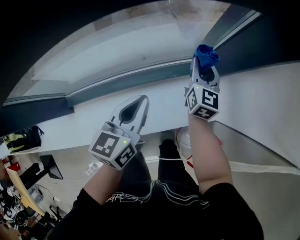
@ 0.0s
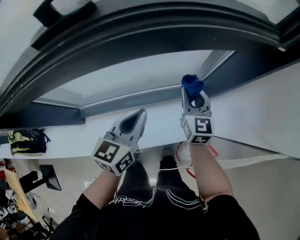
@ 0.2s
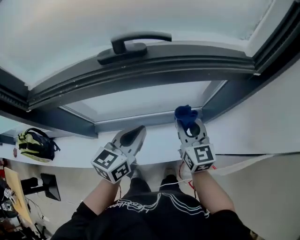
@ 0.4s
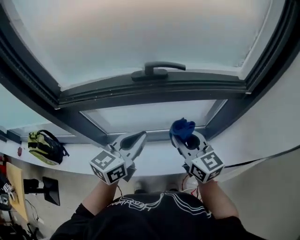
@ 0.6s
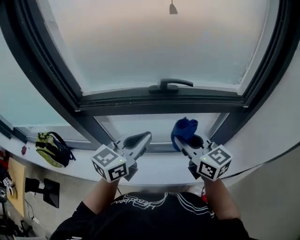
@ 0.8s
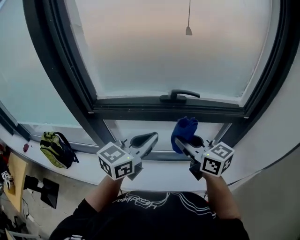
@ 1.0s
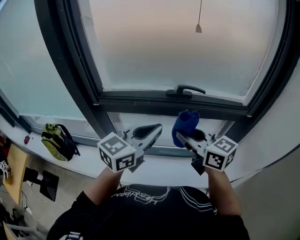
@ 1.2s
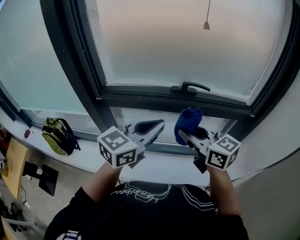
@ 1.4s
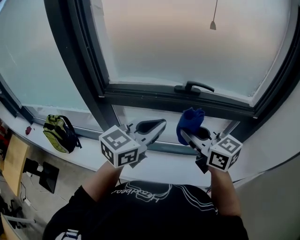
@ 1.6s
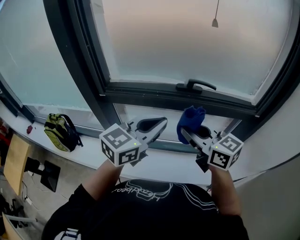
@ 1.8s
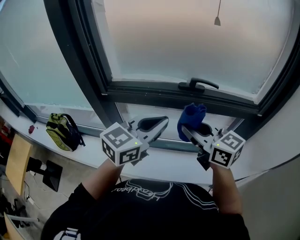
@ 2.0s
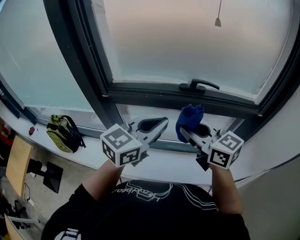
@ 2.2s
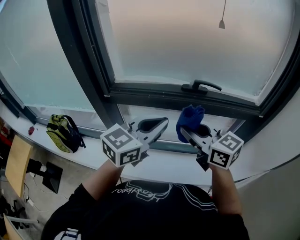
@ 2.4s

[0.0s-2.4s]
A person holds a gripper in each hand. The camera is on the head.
0.0s to 1.2s: Both grippers travel together upward, about 40 cm. The left gripper swivels about 30 degrees. Meanwhile the right gripper changes its angle by approximately 60 degrees.
1.2s to 2.4s: The grippers move only a little.

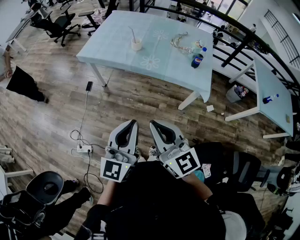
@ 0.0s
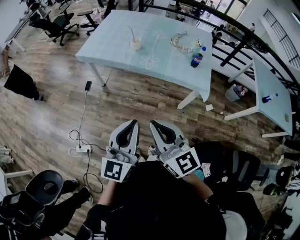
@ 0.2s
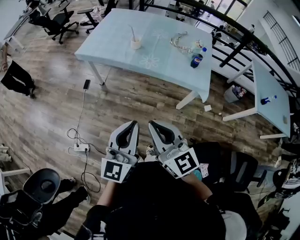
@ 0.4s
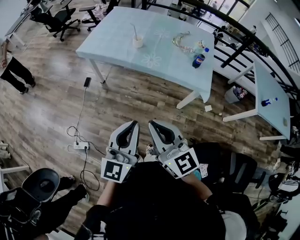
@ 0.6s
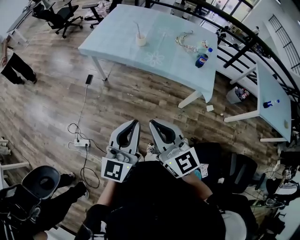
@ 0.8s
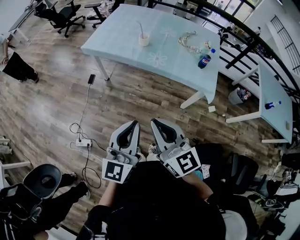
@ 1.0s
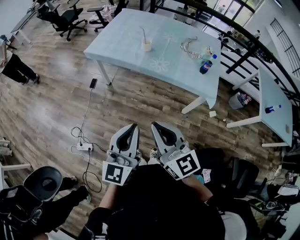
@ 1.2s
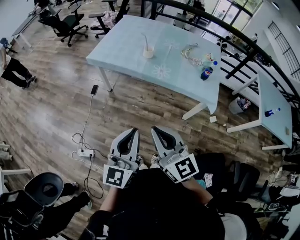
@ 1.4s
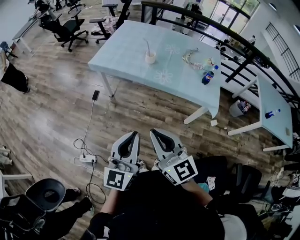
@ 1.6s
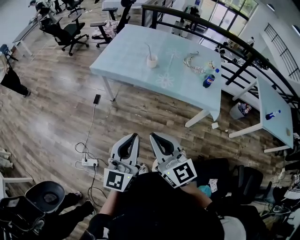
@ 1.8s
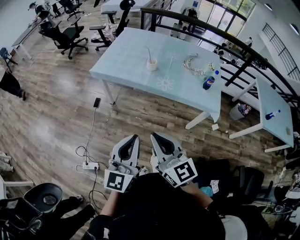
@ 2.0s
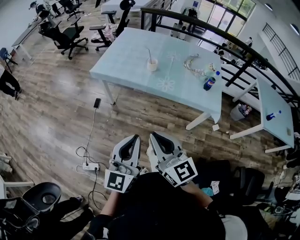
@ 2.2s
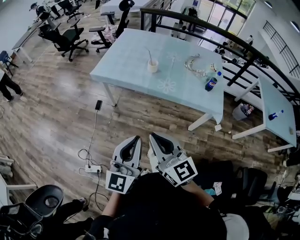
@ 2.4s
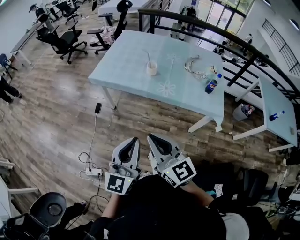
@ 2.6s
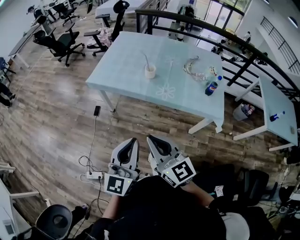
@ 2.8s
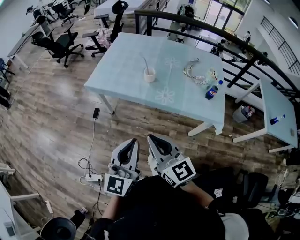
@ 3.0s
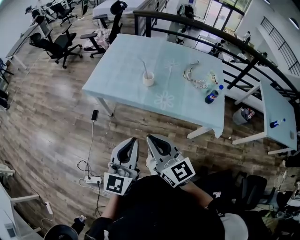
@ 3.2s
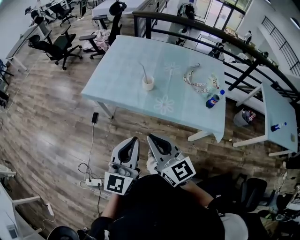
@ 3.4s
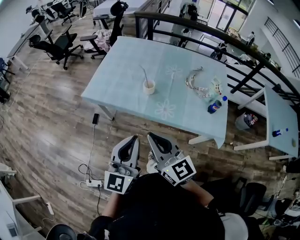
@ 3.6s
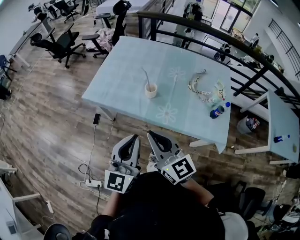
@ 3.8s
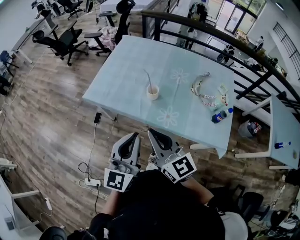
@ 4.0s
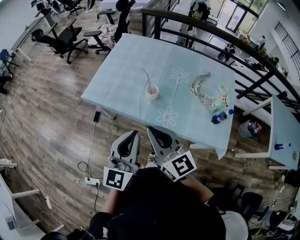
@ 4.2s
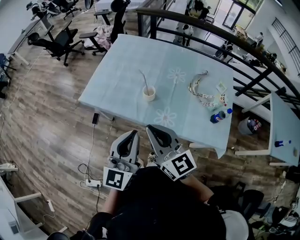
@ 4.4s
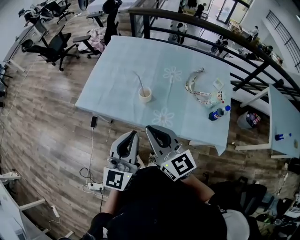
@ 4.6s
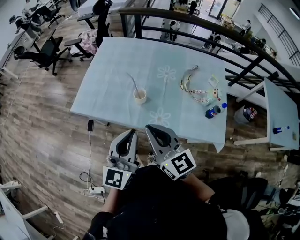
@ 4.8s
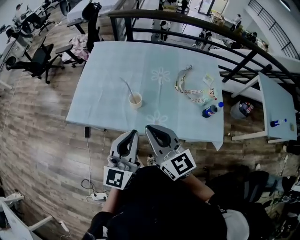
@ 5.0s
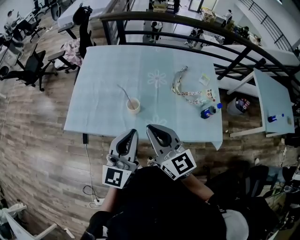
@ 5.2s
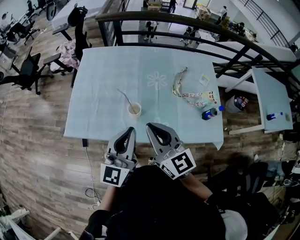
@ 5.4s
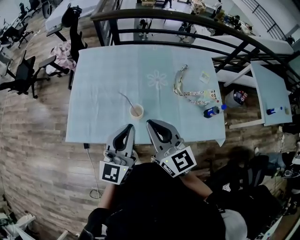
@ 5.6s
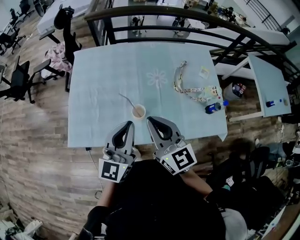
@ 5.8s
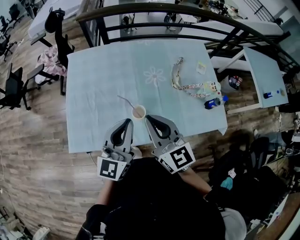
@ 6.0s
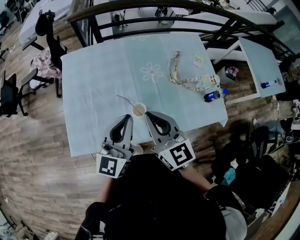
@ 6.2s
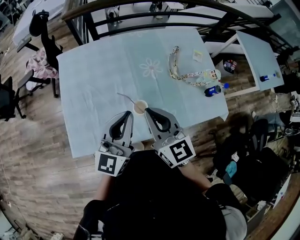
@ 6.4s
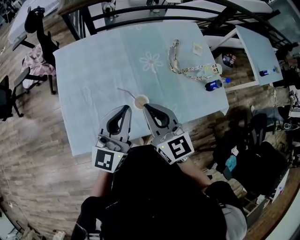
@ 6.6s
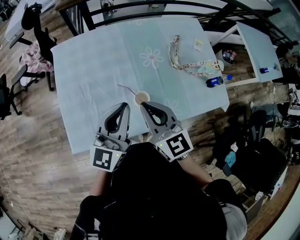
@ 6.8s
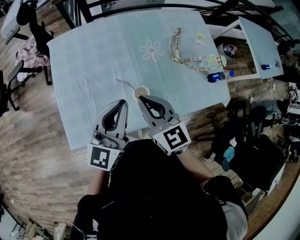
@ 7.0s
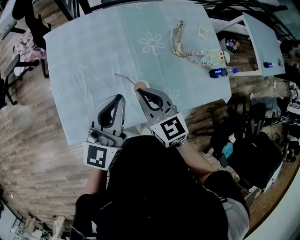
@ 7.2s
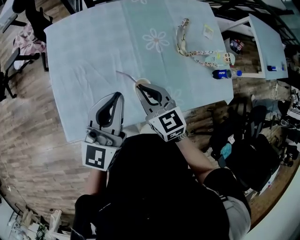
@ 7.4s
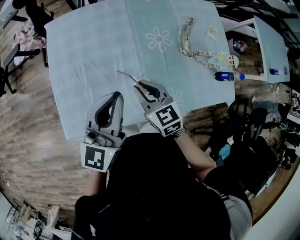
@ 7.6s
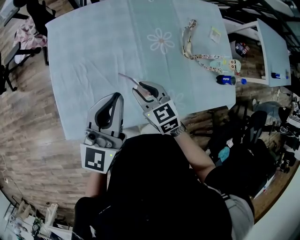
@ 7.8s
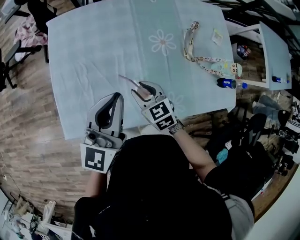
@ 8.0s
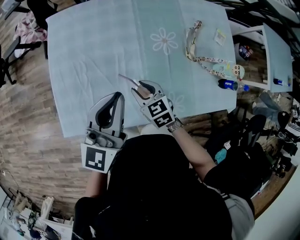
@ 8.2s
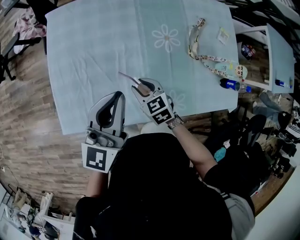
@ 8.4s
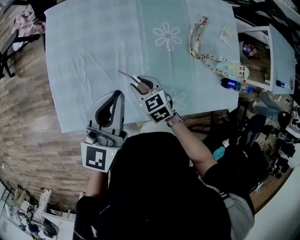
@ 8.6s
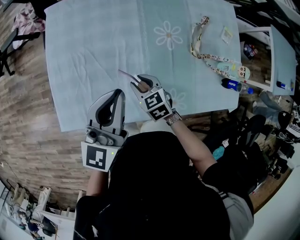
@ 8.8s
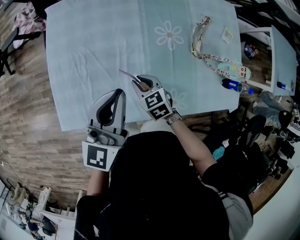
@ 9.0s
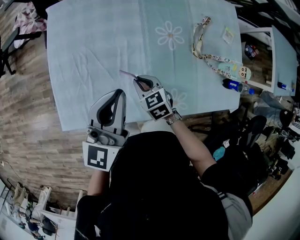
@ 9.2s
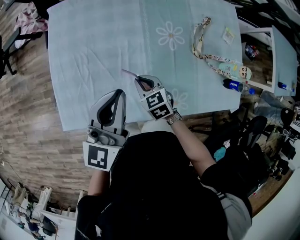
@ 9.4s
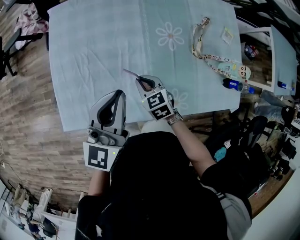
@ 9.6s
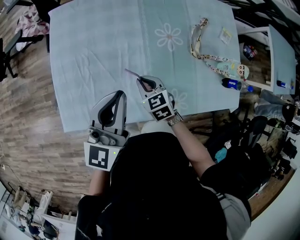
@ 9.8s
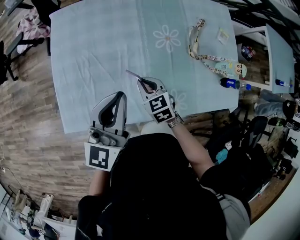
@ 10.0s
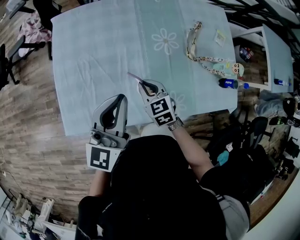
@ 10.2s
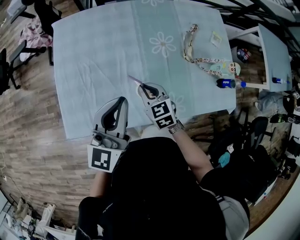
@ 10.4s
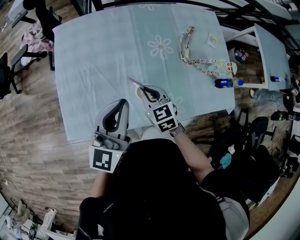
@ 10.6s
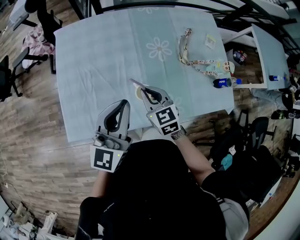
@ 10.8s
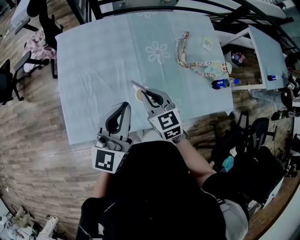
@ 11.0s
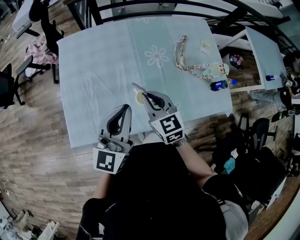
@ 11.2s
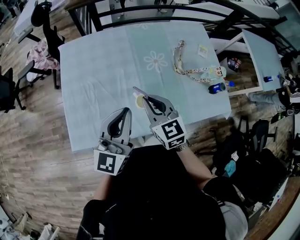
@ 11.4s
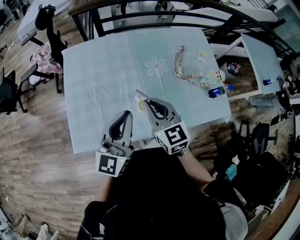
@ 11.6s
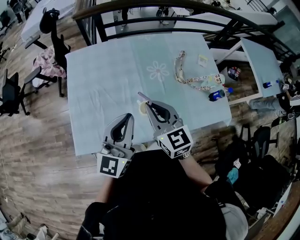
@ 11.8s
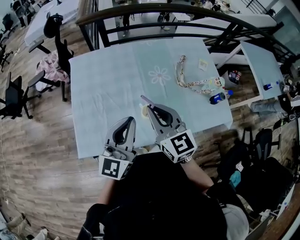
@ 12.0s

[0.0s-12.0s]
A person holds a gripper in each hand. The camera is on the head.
0.0s to 1.6s: Both grippers travel together to the left, approximately 10 cm.
1.6s to 3.0s: Both grippers move forward, about 15 cm.
3.0s to 4.4s: The two grippers go roughly 25 cm forward.
4.4s to 6.0s: The right gripper changes place by about 25 cm, and turns by some 30 degrees. The left gripper ends up roughly 25 cm from where it was, and changes its angle by roughly 30 degrees.
6.0s to 7.6s: The left gripper moves forward and to the left, some 10 cm; the right gripper travels downward and forward by some 20 cm, and changes its angle by approximately 30 degrees.
7.6s to 9.0s: The left gripper ends up roughly 5 cm from where it was. Meanwhile the right gripper heads downward, covering about 15 cm.
9.0s to 10.4s: The right gripper moves upward, about 5 cm. The left gripper heads backward, covering roughly 5 cm.
10.4s to 12.0s: The left gripper moves backward and upward, some 10 cm. Meanwhile the right gripper goes roughly 25 cm upward, and rotates approximately 30 degrees.

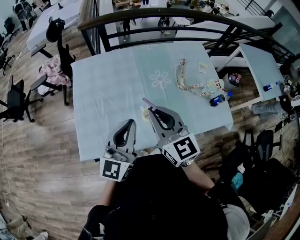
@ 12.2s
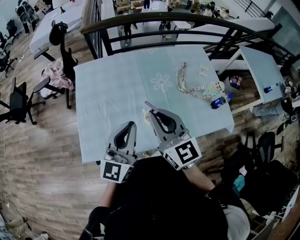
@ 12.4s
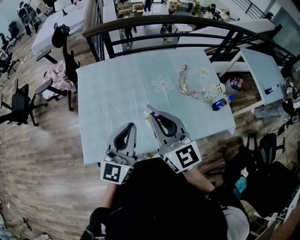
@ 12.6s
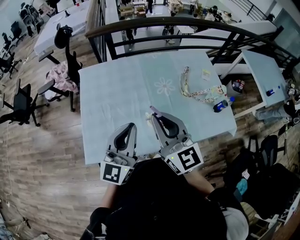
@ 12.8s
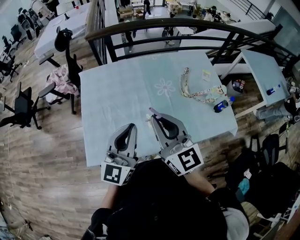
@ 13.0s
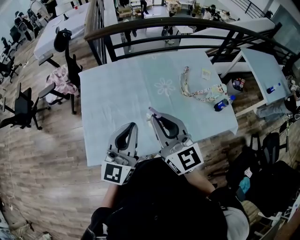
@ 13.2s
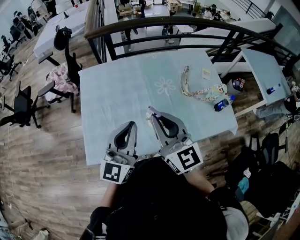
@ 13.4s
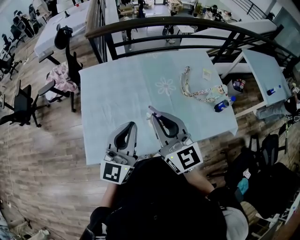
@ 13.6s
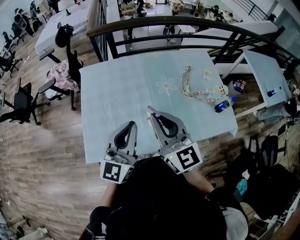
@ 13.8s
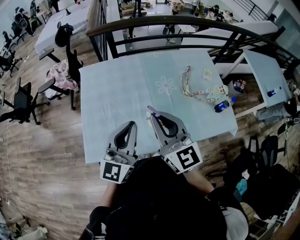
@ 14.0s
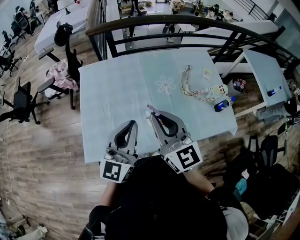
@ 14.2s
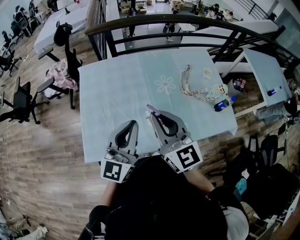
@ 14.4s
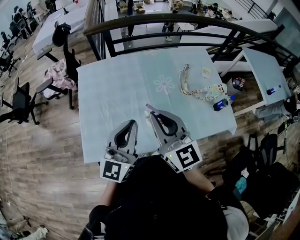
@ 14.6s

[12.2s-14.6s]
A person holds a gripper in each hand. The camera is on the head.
12.2s to 13.4s: The grippers make only small movements.
13.4s to 14.6s: The two grippers keep their place.

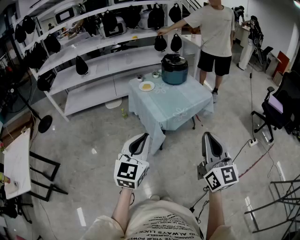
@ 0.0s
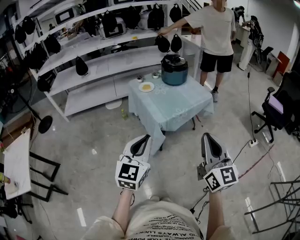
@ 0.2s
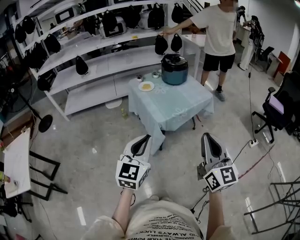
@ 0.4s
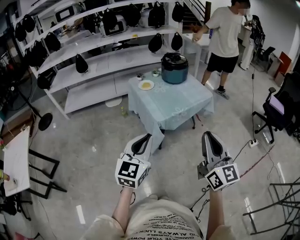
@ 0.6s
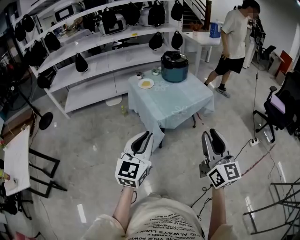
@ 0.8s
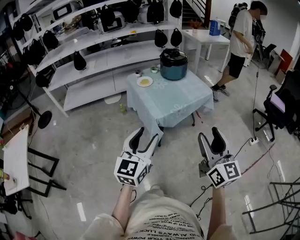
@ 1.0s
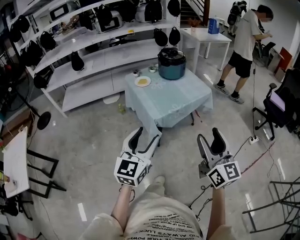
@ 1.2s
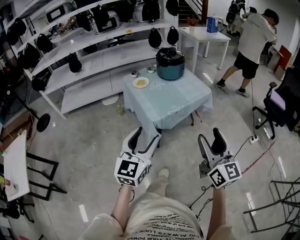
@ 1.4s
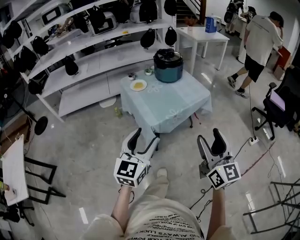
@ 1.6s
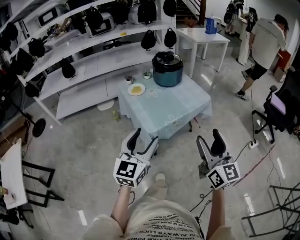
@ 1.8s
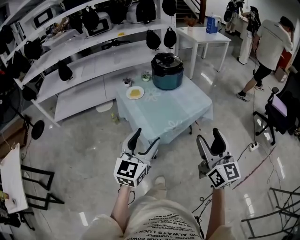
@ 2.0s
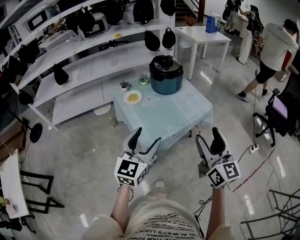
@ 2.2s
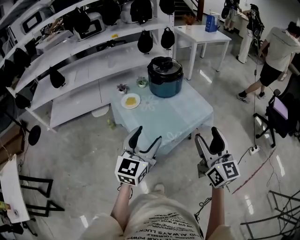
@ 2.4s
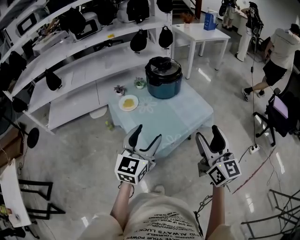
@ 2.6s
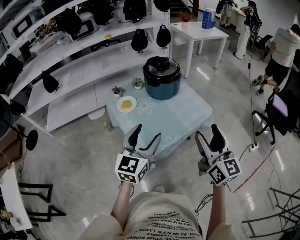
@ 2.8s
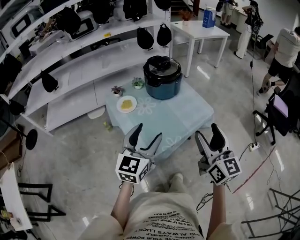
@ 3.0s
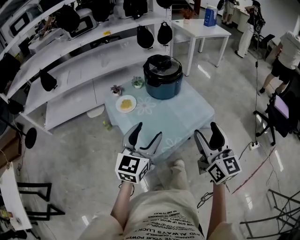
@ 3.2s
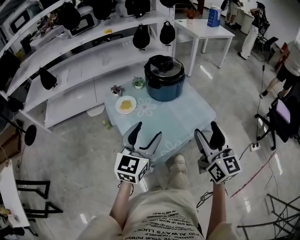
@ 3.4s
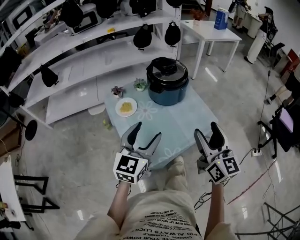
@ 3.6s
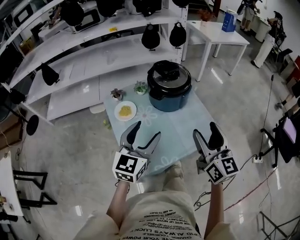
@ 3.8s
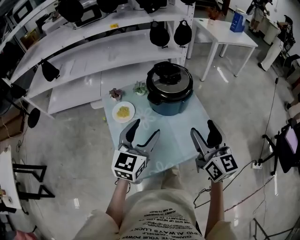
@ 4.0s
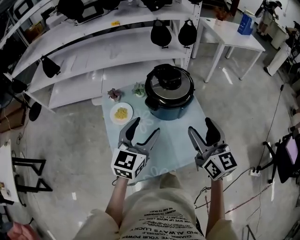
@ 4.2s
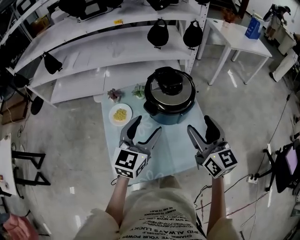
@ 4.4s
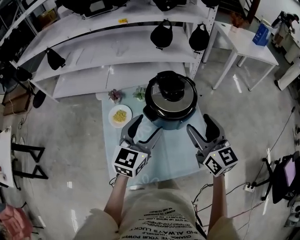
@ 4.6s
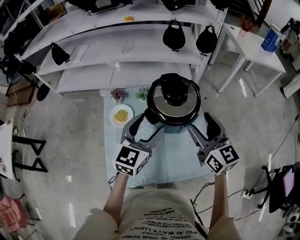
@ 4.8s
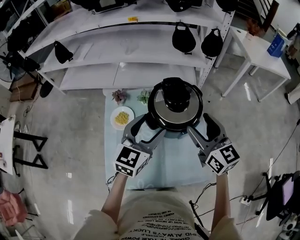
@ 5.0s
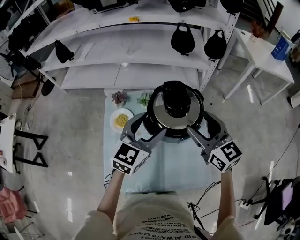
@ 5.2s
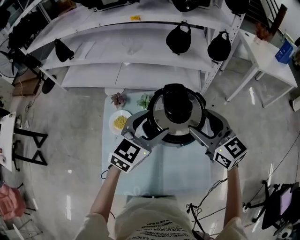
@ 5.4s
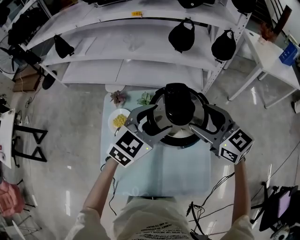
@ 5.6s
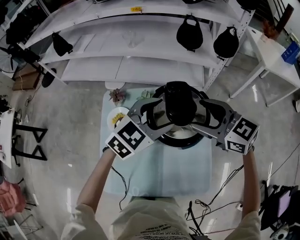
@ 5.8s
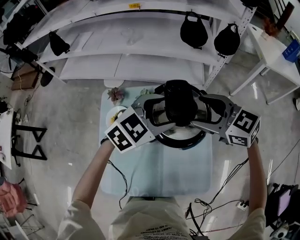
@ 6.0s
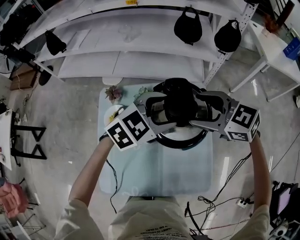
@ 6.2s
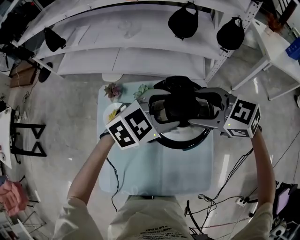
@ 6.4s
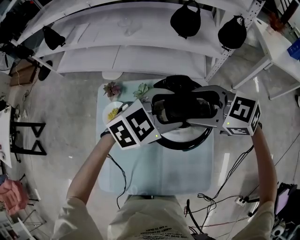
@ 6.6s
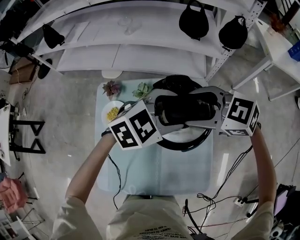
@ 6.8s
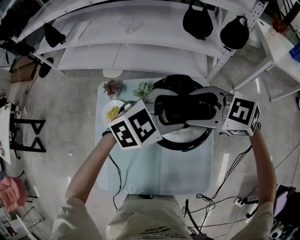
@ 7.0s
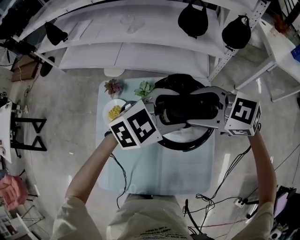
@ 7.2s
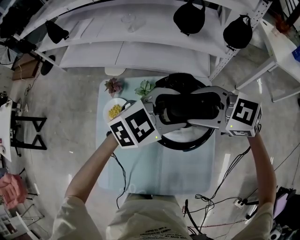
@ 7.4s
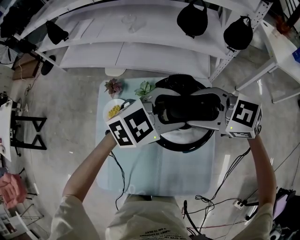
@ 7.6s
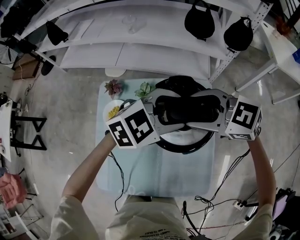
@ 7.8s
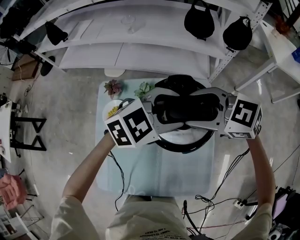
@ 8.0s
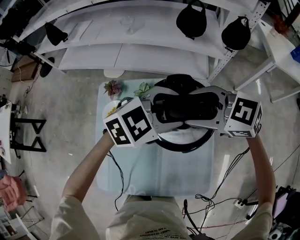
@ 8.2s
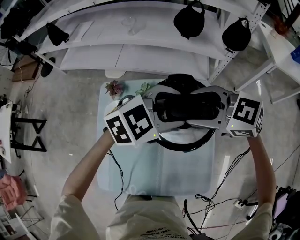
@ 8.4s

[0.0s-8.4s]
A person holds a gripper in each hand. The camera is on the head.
0.0s to 1.4s: Both grippers travel together forward and to the right, approximately 10 cm. The left gripper opens its fingers; the right gripper opens.
1.4s to 2.8s: The two grippers go some 30 cm forward.
2.8s to 4.2s: Both grippers move forward, some 25 cm. The right gripper turns by some 20 degrees.
4.2s to 5.6s: The right gripper moves forward, some 20 cm, and rotates about 40 degrees. The left gripper shifts about 20 cm forward and to the right.
5.6s to 7.0s: The left gripper moves about 5 cm, and swivels roughly 20 degrees; the right gripper shifts by some 5 cm, and rotates about 40 degrees.
7.0s to 8.4s: The grippers move only a little.
